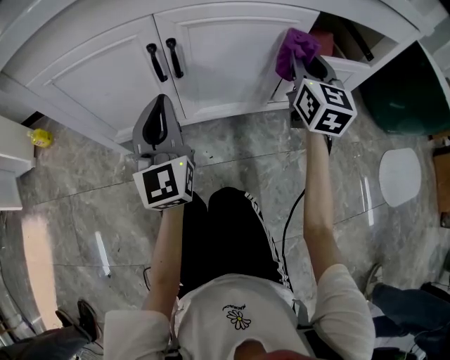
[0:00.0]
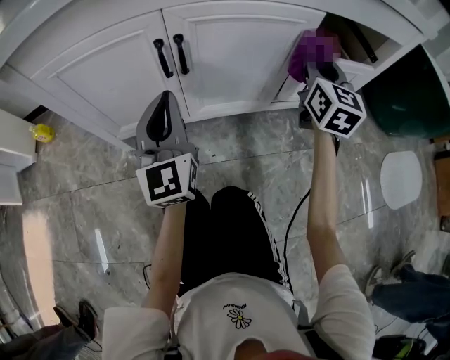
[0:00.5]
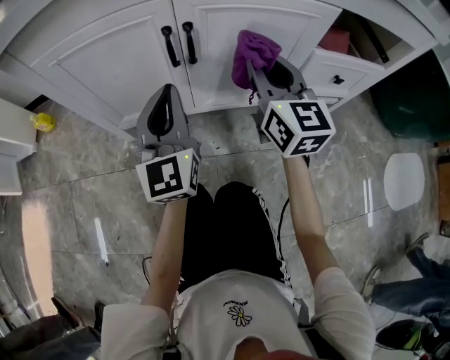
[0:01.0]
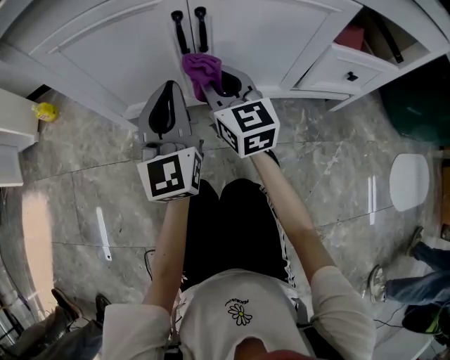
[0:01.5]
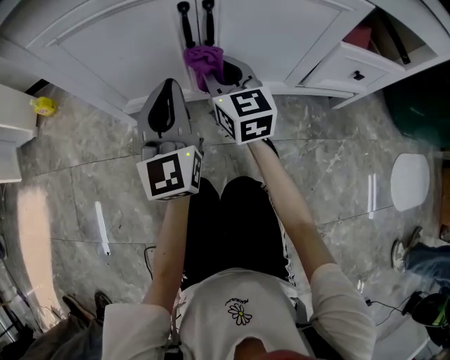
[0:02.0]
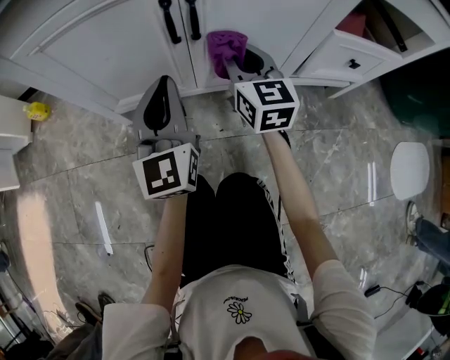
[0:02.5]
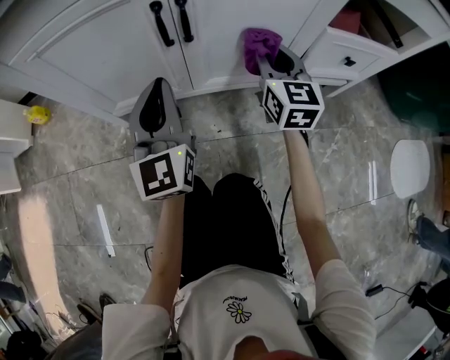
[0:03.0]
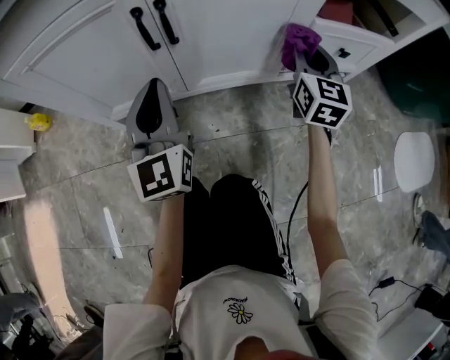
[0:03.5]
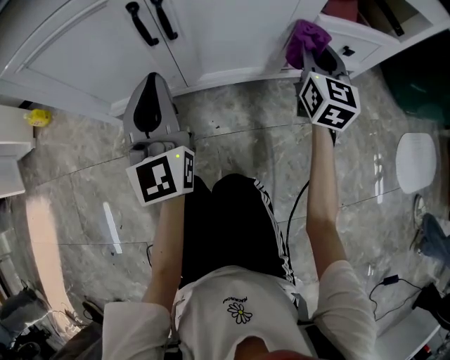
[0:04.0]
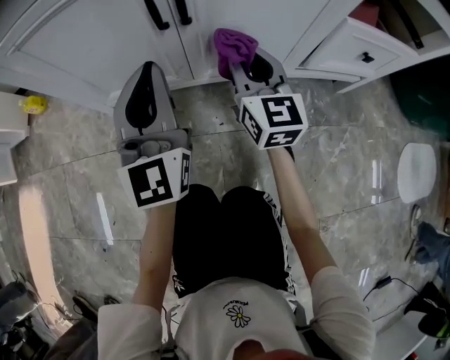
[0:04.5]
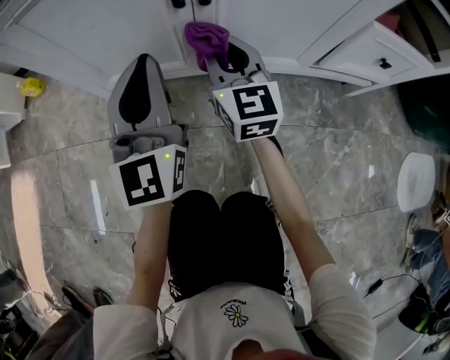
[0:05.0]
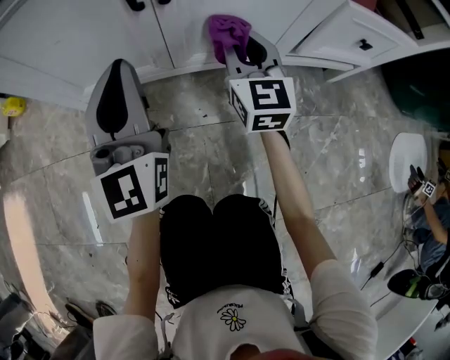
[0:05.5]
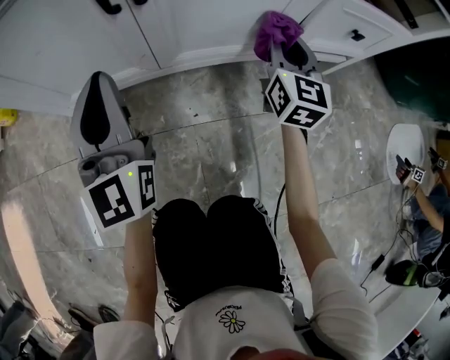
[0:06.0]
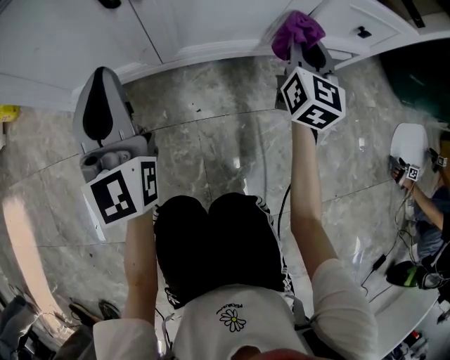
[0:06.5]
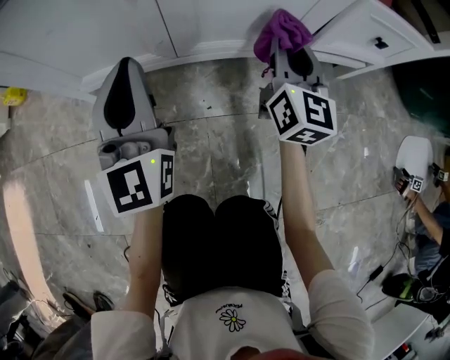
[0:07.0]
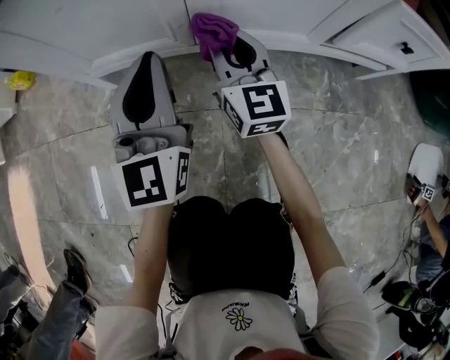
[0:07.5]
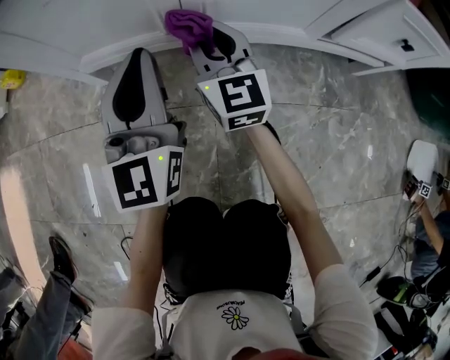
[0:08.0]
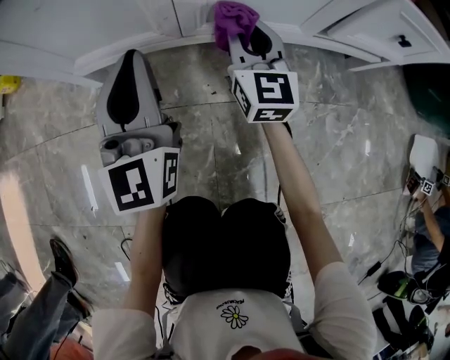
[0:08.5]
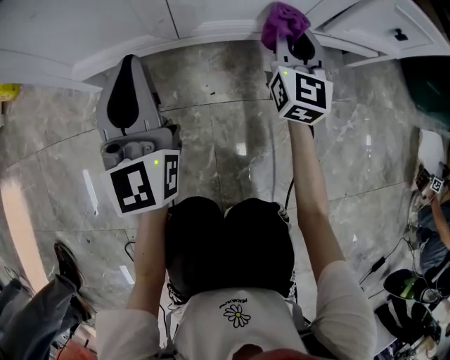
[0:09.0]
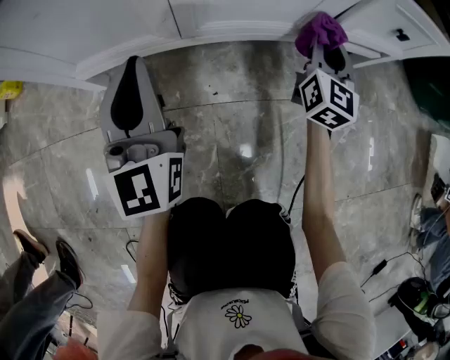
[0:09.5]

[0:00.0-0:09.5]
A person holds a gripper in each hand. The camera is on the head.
0:00.0 to 0:02.0: The right gripper shifts some 30 cm to the left and downward, and rotates some 30 degrees. Meanwhile the left gripper changes place by roughly 5 cm.
0:02.0 to 0:04.0: The right gripper shifts approximately 30 cm to the right, and turns by roughly 30 degrees.
0:04.0 to 0:05.5: The right gripper moves to the left and downward, about 20 cm.
0:05.5 to 0:07.5: The left gripper heads downward, covering roughly 5 cm. The right gripper reaches about 15 cm to the right, then returns.
0:07.5 to 0:09.5: The right gripper moves to the right, approximately 25 cm, and changes its angle by approximately 30 degrees.

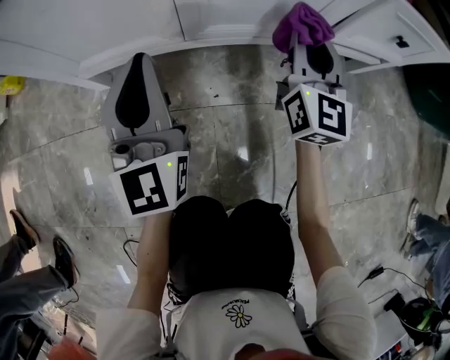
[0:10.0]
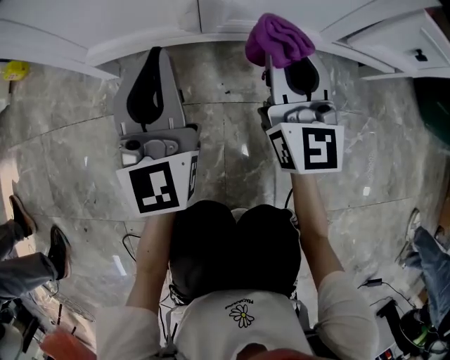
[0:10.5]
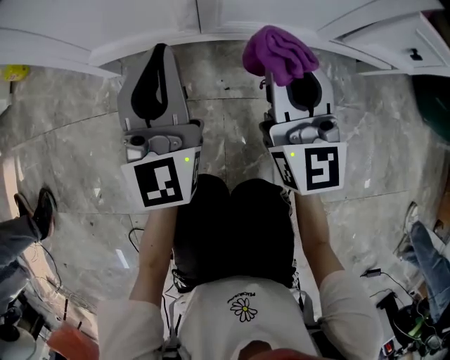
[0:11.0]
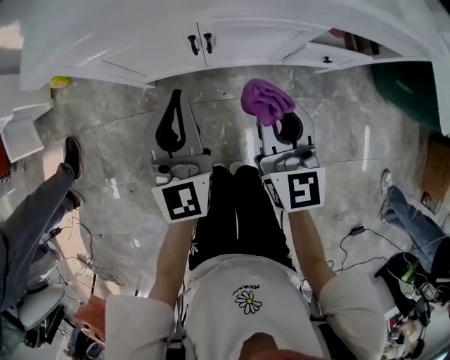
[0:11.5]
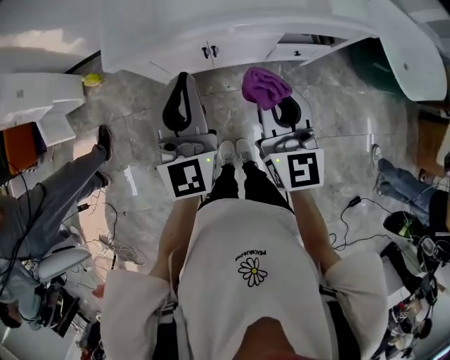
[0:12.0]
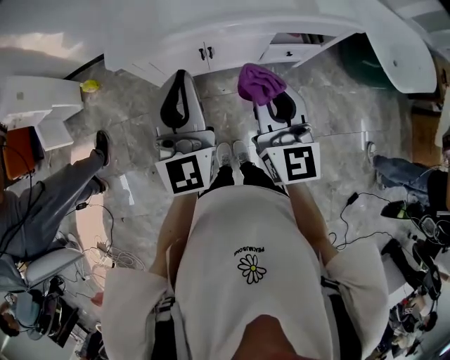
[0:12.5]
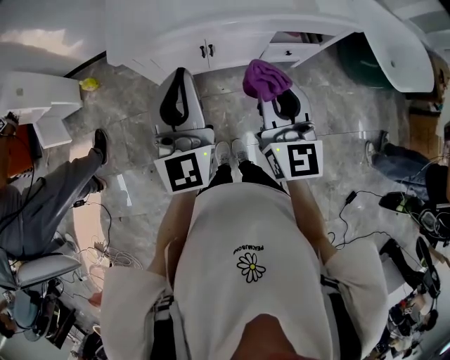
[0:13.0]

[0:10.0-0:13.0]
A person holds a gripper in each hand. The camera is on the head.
0:10.0 to 0:11.5: The two grippers go approximately 35 cm upward.
0:11.5 to 0:13.0: The grippers both shift upward by some 30 cm.

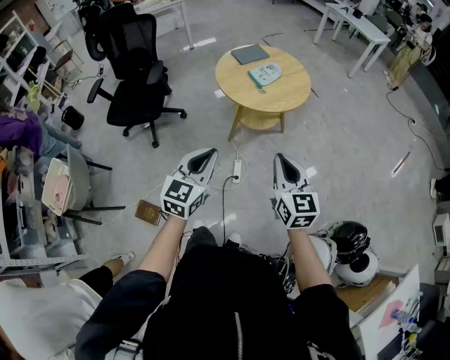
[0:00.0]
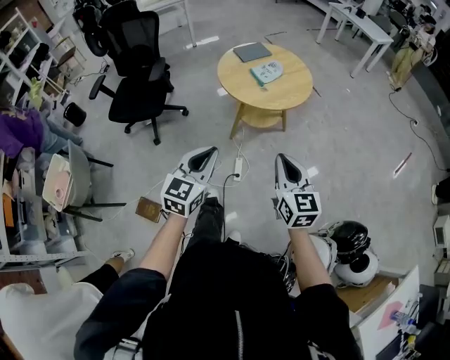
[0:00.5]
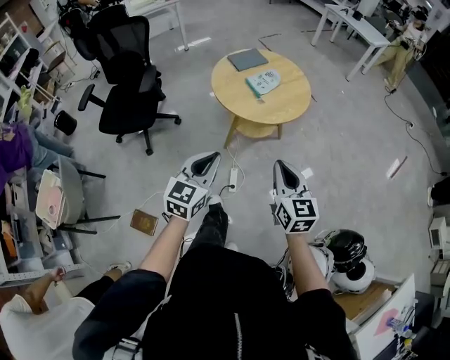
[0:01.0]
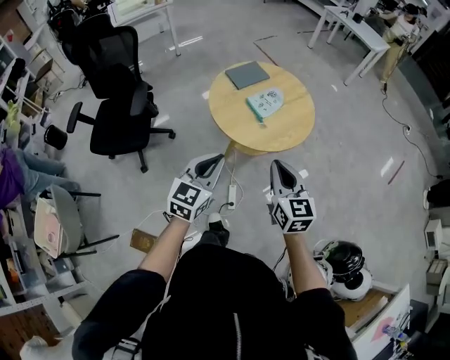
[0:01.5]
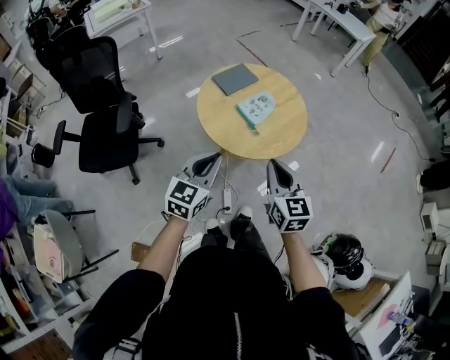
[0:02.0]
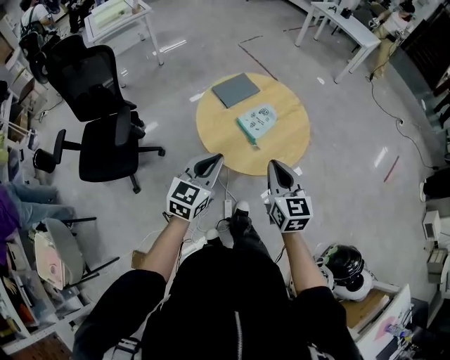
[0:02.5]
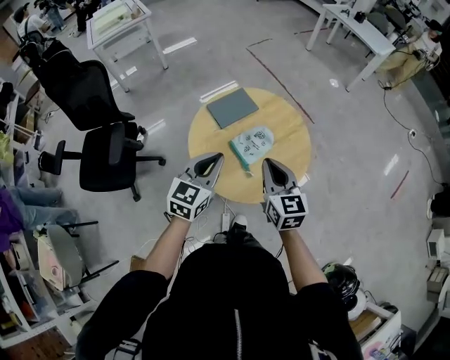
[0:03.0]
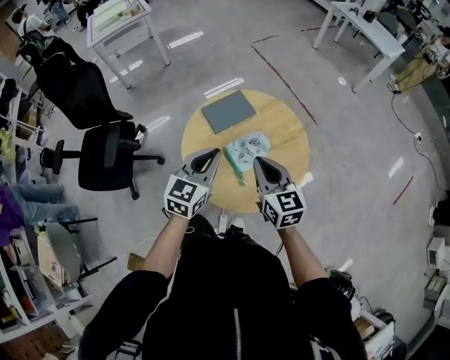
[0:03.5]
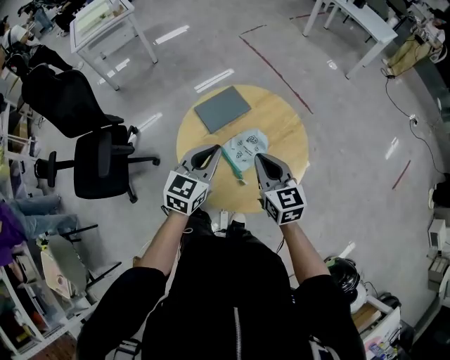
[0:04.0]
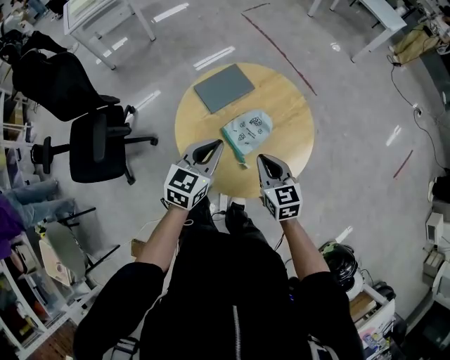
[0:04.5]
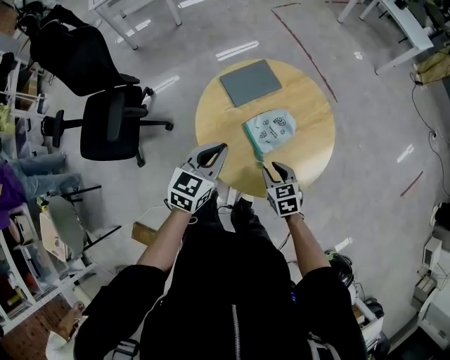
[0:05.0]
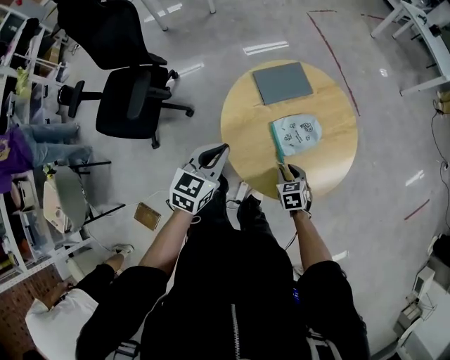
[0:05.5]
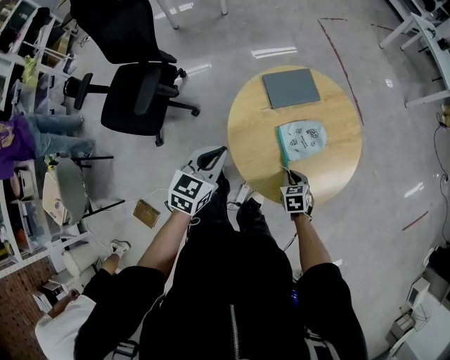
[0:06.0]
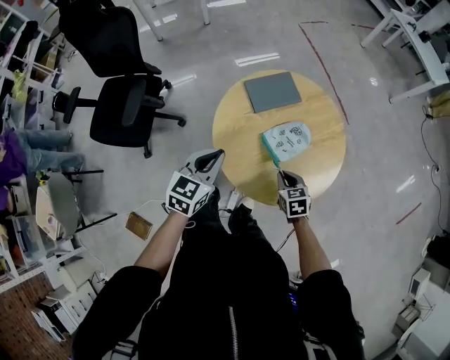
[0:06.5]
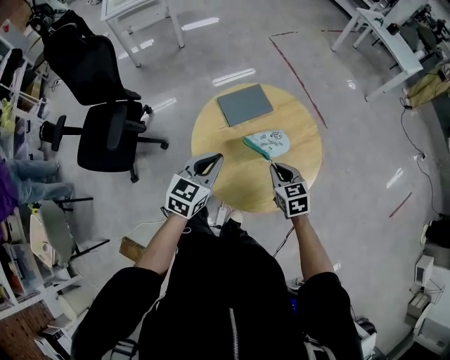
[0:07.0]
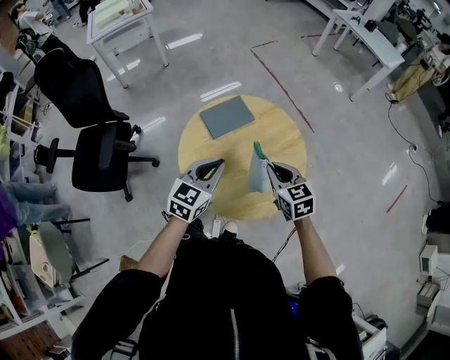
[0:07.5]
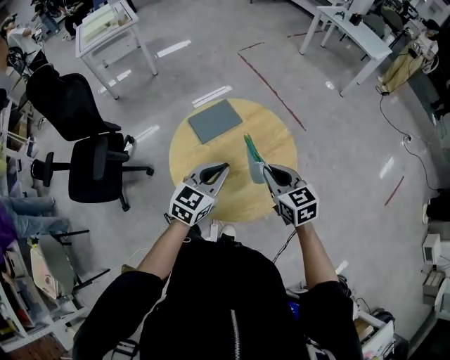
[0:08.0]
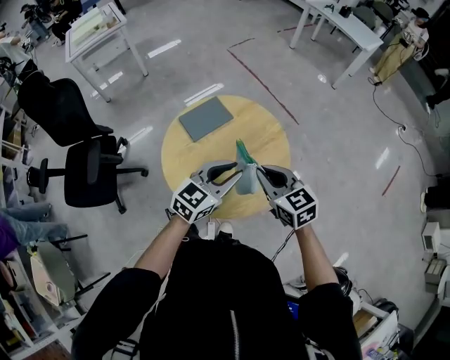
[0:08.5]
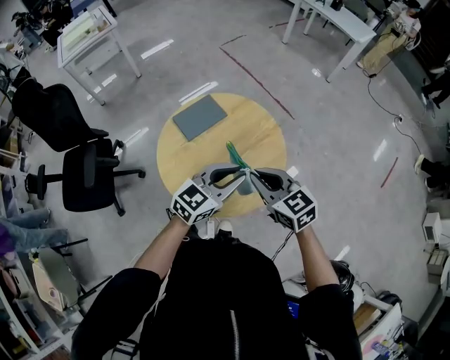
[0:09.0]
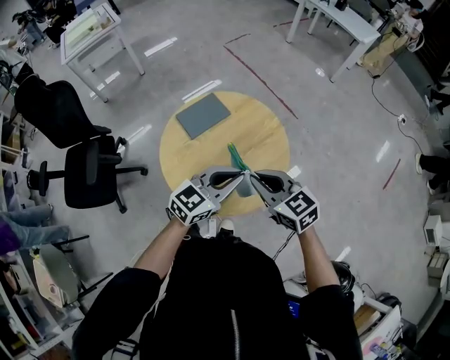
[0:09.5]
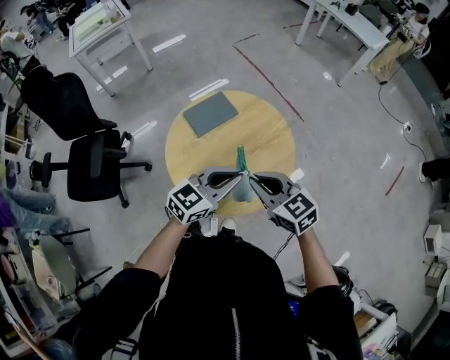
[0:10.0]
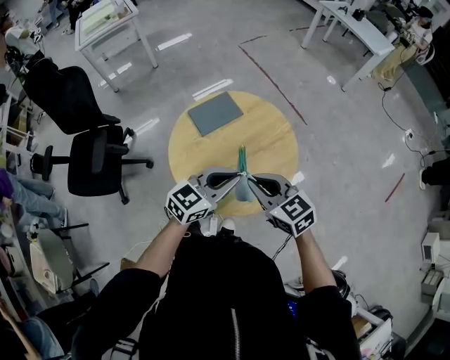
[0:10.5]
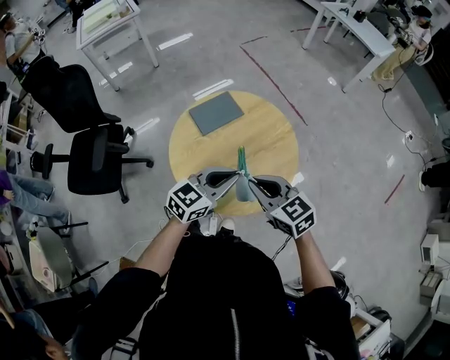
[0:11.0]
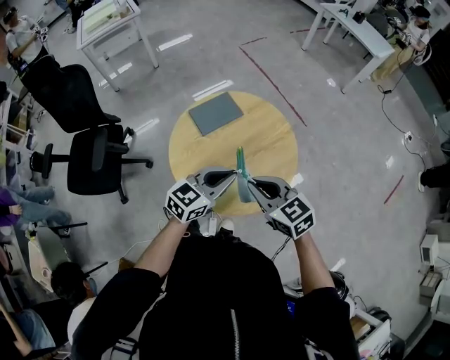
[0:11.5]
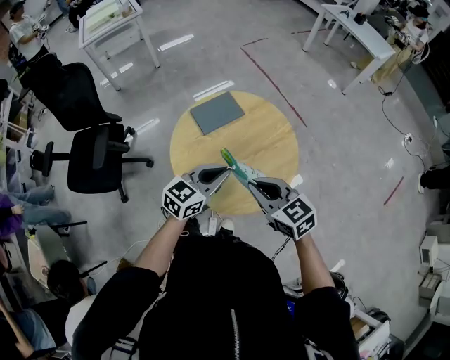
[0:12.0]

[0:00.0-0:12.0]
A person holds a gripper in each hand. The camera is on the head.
0:00.0 to 0:02.0: Both grippers move forward, roughly 30 cm.
0:02.0 to 0:04.0: The two grippers go roughly 30 cm forward.
0:04.0 to 0:06.0: The left gripper goes about 20 cm to the left, downward and backward, and turns by approximately 20 degrees, while the right gripper shifts some 30 cm downward, tilts its fingers about 40 degrees downward, and opens, then closes again.
0:06.0 to 0:08.0: The left gripper shifts some 20 cm to the right, and swivels some 30 degrees. Meanwhile the right gripper moves upward, some 25 cm, and tilts its fingers approximately 30 degrees upward.
0:08.0 to 0:10.0: The left gripper moves to the right, roughly 5 cm, rotates roughly 20 degrees, and opens, then closes again. The right gripper goes some 5 cm backward.
0:10.0 to 0:12.0: The left gripper shifts about 5 cm to the left.

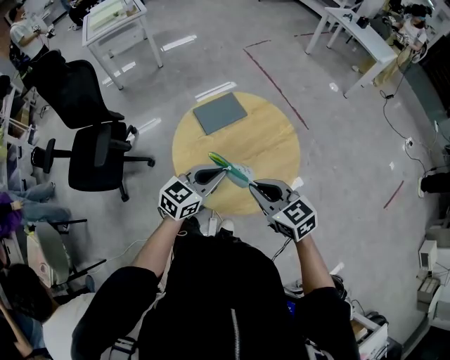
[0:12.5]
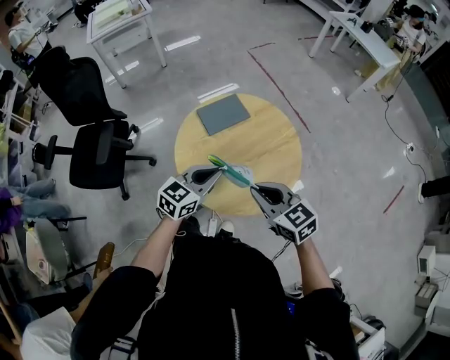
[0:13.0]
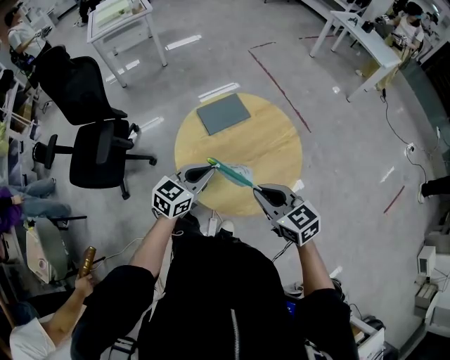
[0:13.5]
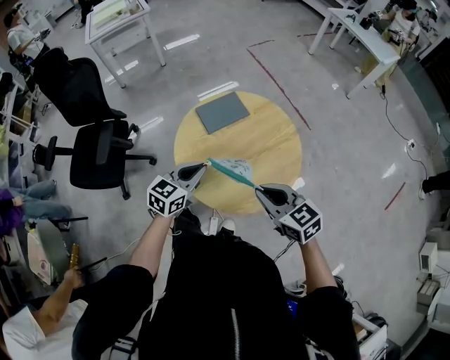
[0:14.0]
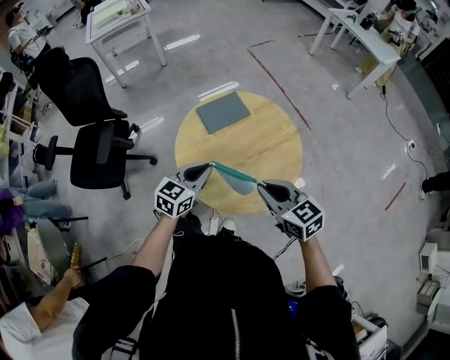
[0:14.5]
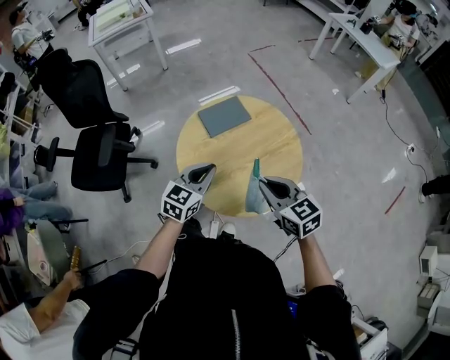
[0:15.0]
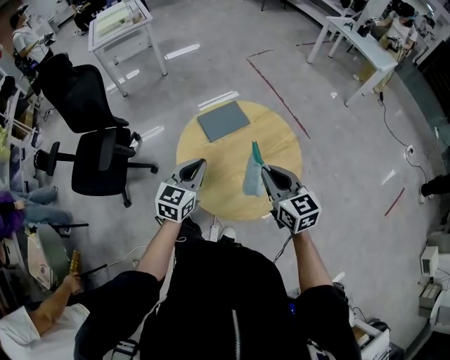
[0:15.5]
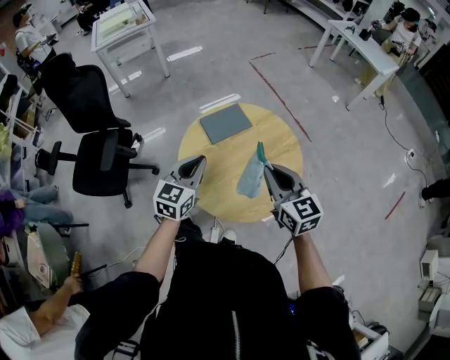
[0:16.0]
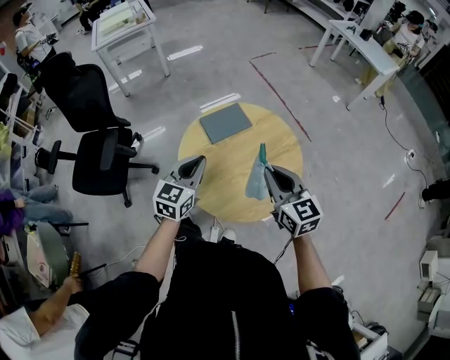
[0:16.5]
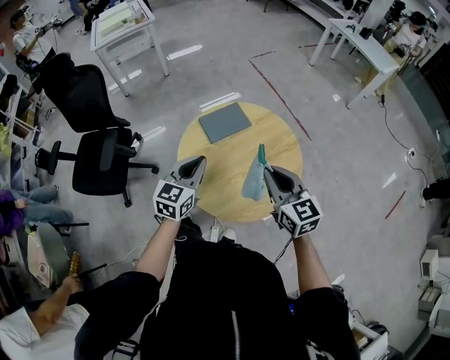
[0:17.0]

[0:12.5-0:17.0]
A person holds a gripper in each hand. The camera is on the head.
0:12.5 to 0:14.5: The left gripper heads to the left, covering roughly 5 cm.
0:14.5 to 0:17.0: The right gripper heads forward, covering roughly 5 cm, while the left gripper travels upward by roughly 5 cm.
